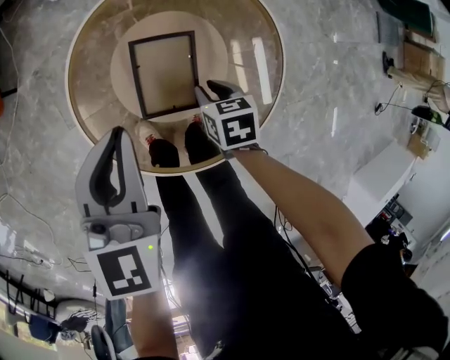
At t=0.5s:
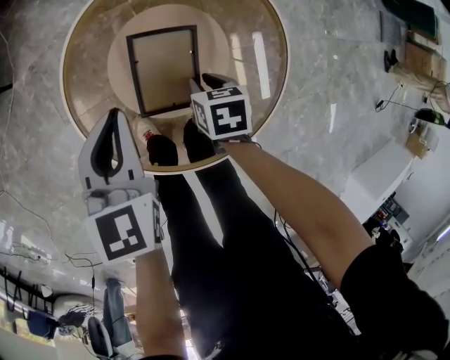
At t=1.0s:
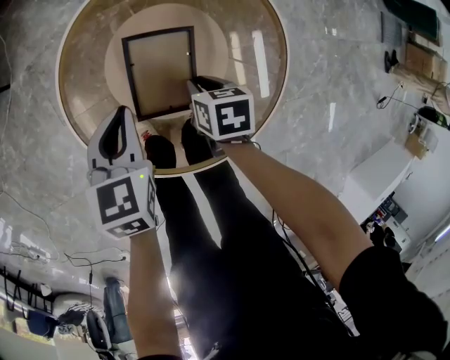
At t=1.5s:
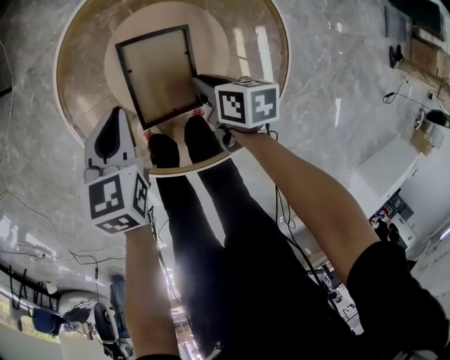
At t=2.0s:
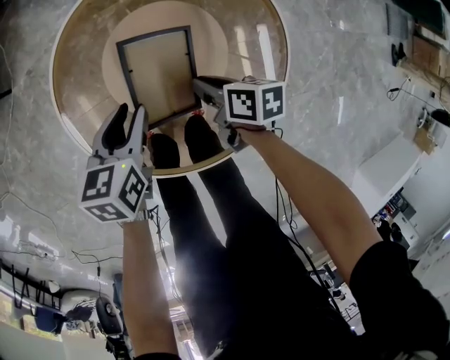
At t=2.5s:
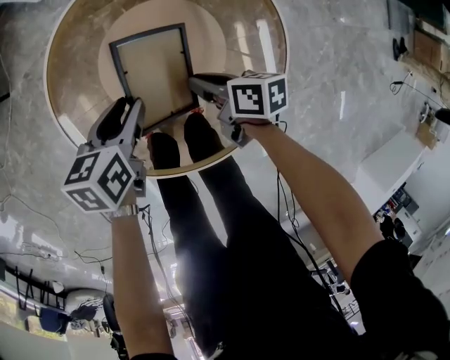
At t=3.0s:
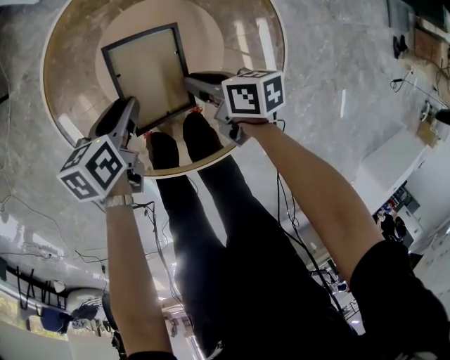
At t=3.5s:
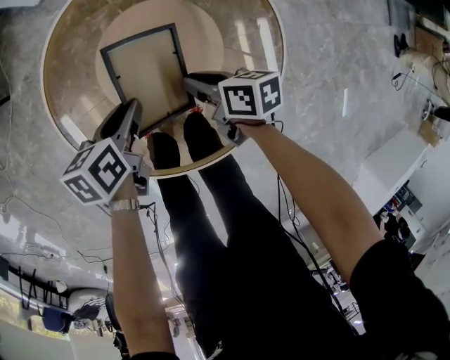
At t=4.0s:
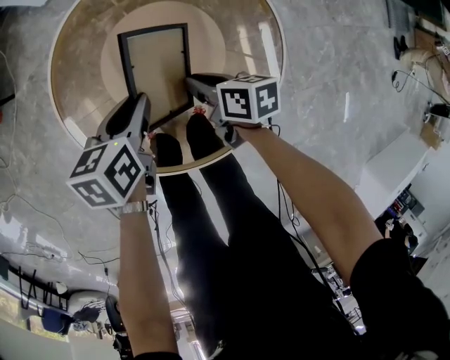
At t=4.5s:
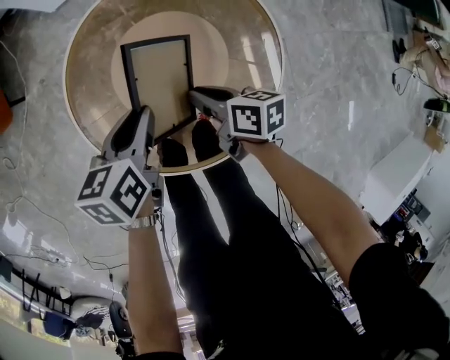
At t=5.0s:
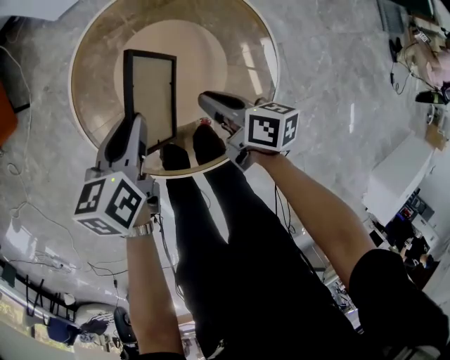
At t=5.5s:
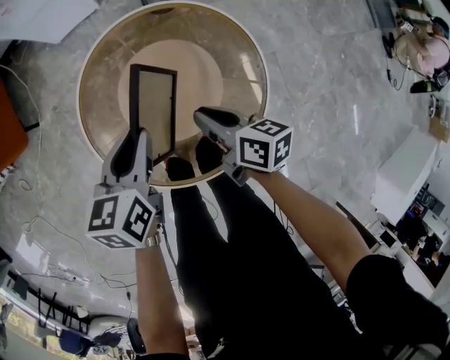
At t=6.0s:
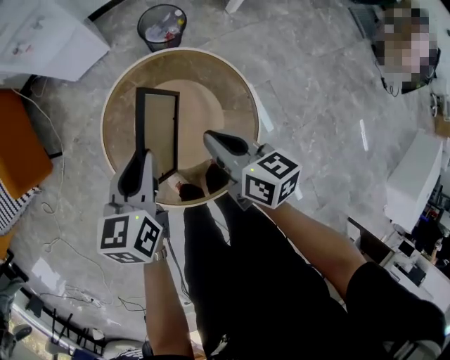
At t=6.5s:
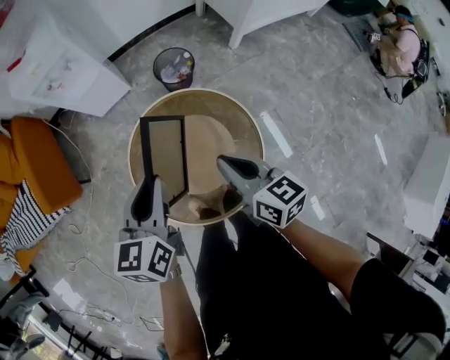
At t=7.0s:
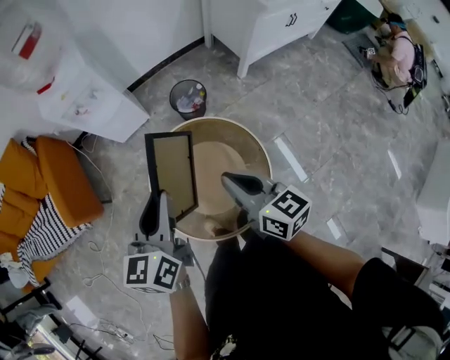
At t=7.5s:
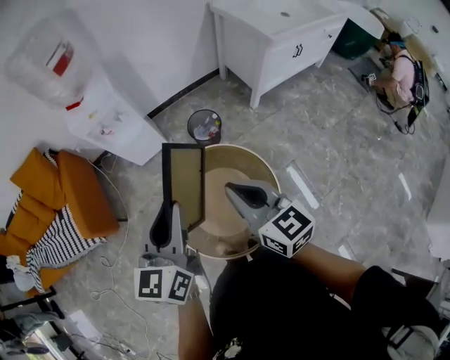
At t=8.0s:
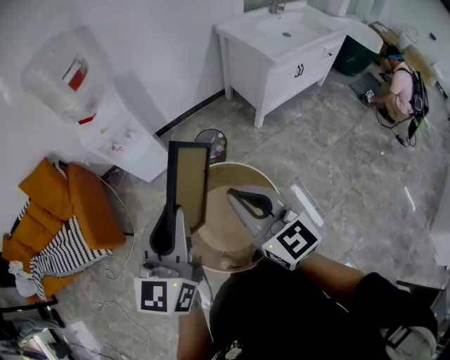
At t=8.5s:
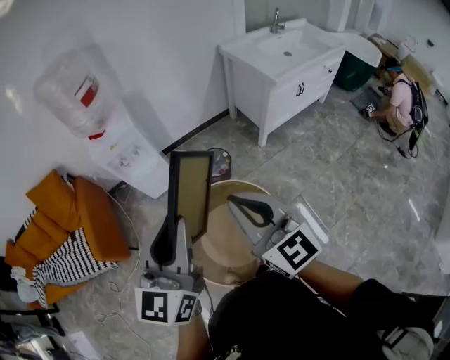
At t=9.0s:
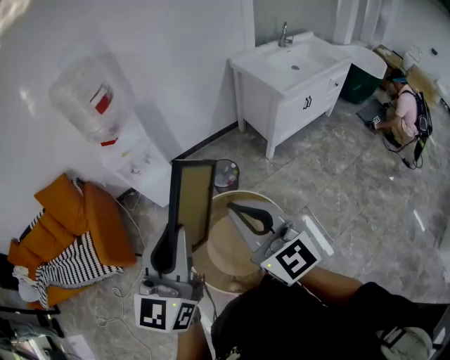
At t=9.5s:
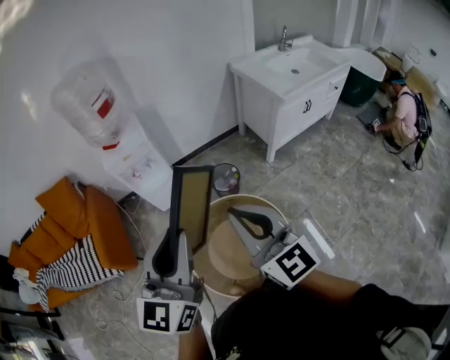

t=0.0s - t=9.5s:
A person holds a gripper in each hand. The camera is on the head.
t=0.0s - t=2.0s: The left gripper shifts roughly 20 cm downward, changes its angle by some 30 degrees, and opens up, while the right gripper swivels approximately 30 degrees.
t=2.0s - t=4.0s: The grippers move only a little.
t=4.0s - t=5.5s: The grippers both shift upward by approximately 15 cm.
t=5.5s - t=7.5s: The grippers both shift upward by some 50 cm. The right gripper changes its angle by roughly 40 degrees; the left gripper swivels approximately 40 degrees.
t=7.5s - t=9.5s: Both grippers move upward, some 15 cm. The right gripper changes its angle by approximately 20 degrees. Meanwhile the left gripper changes its angle by approximately 20 degrees.

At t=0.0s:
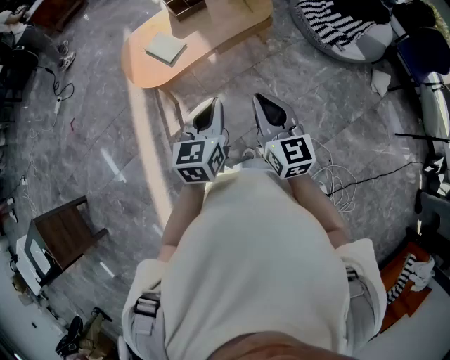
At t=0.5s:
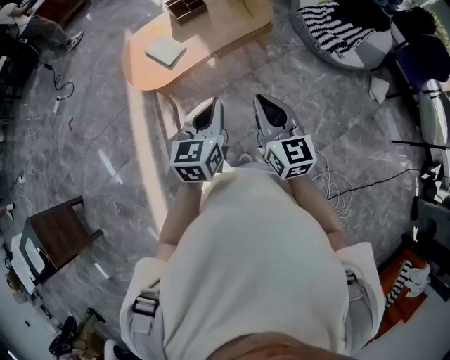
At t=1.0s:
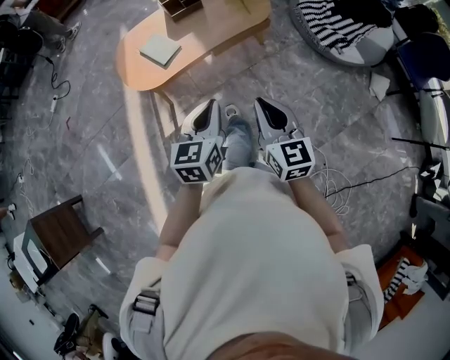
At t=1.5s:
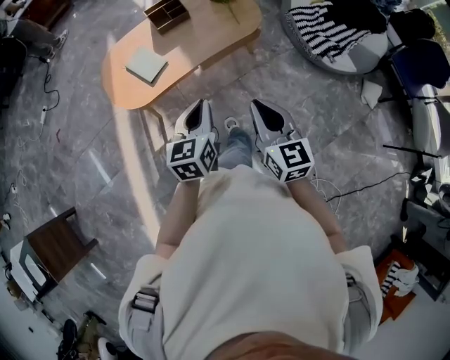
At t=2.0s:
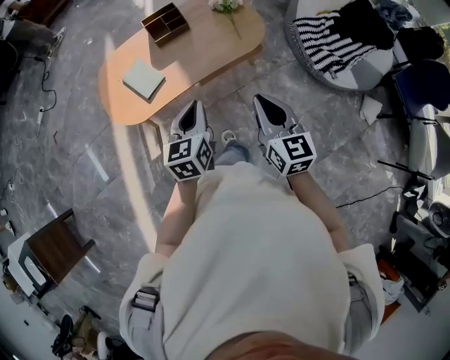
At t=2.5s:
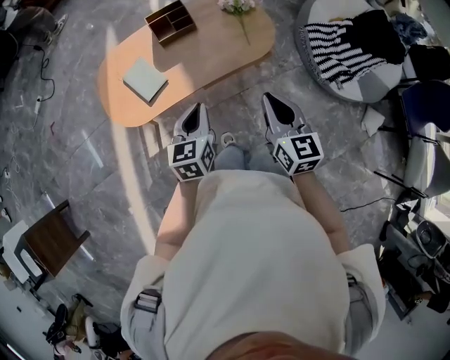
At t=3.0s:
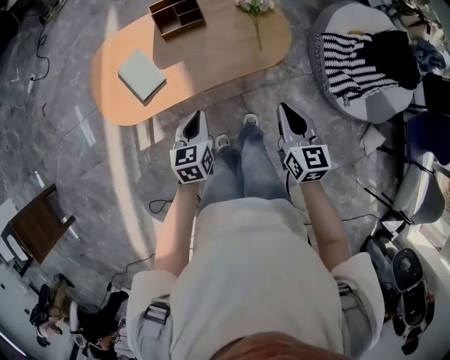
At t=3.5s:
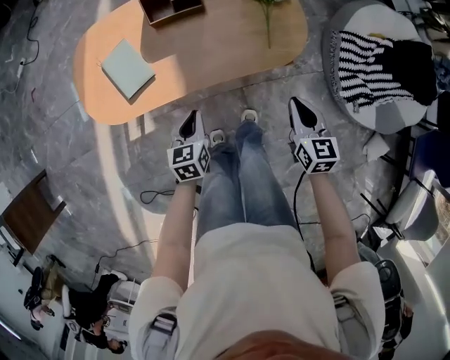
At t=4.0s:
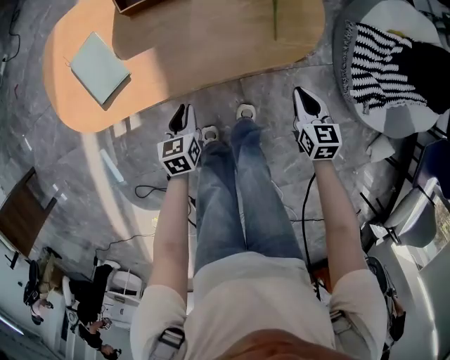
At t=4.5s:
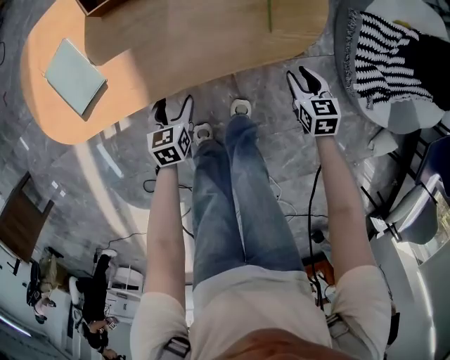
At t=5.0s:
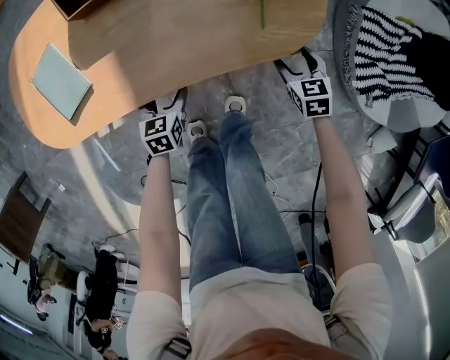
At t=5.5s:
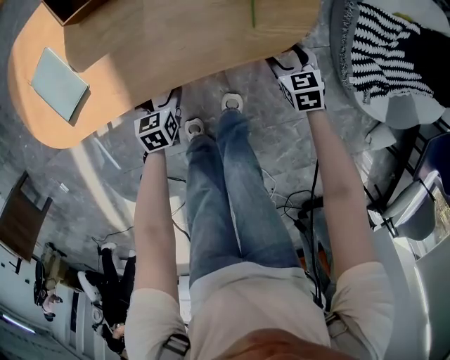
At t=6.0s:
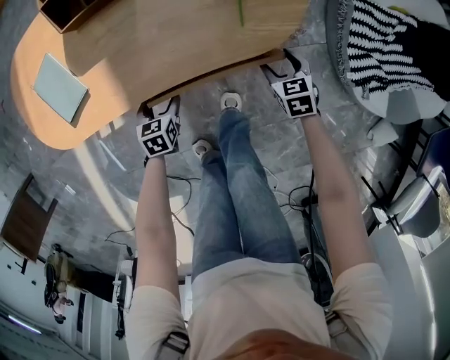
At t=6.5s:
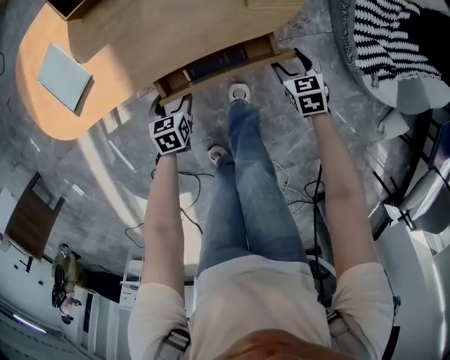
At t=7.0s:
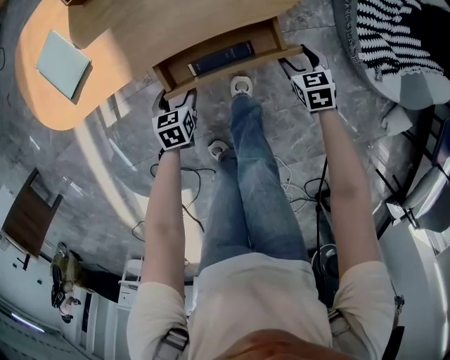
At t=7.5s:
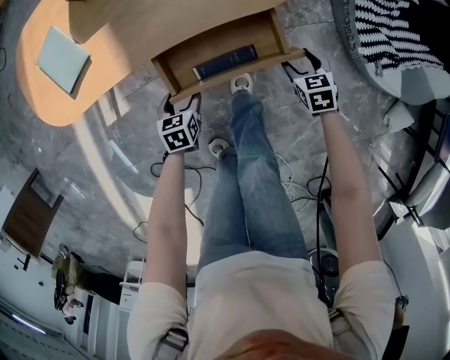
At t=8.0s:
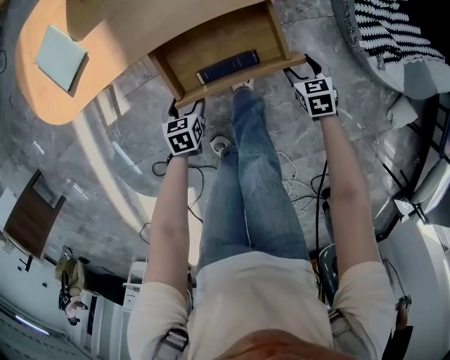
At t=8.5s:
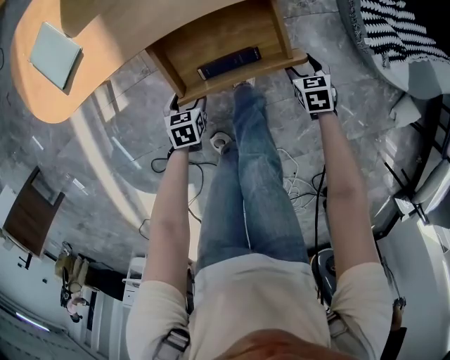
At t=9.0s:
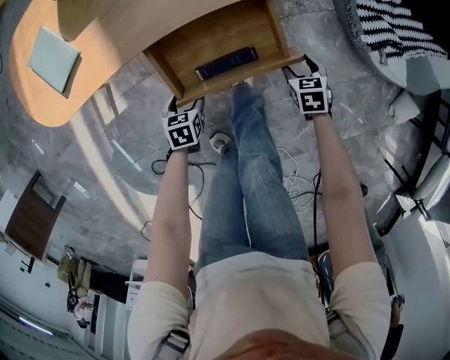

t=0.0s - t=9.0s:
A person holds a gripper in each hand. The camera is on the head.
t=0.0s - t=2.0s: The right gripper goes some 25 cm forward and to the right. The left gripper goes roughly 25 cm forward.
t=2.0s - t=4.5s: The left gripper goes some 50 cm downward, turns by roughly 30 degrees, and opens its fingers; the right gripper moves downward and forward, approximately 60 cm, angles its fingers downward, by about 40 degrees, and opens.
t=4.5s - t=7.0s: Both grippers move backward, about 5 cm. The right gripper opens.
t=7.0s - t=9.0s: The two grippers go some 10 cm backward.

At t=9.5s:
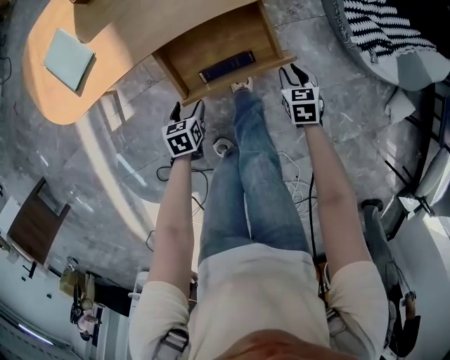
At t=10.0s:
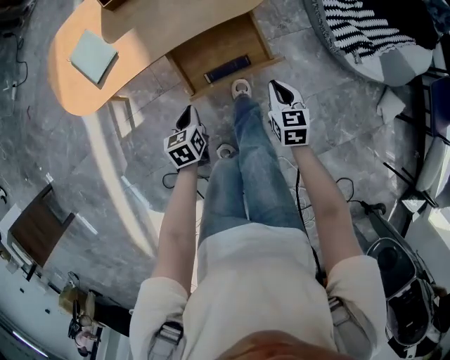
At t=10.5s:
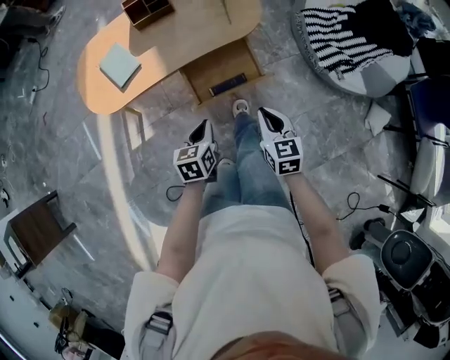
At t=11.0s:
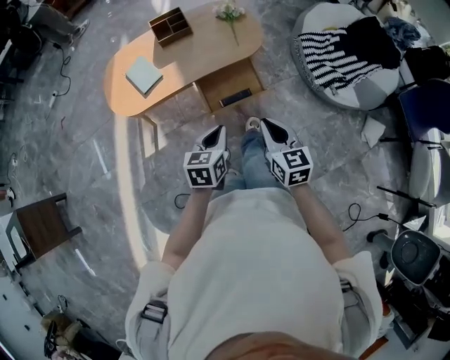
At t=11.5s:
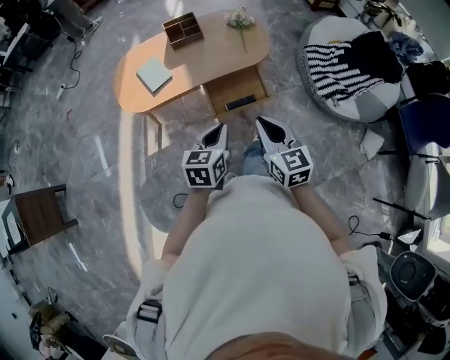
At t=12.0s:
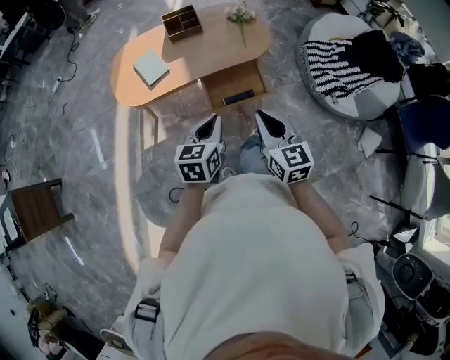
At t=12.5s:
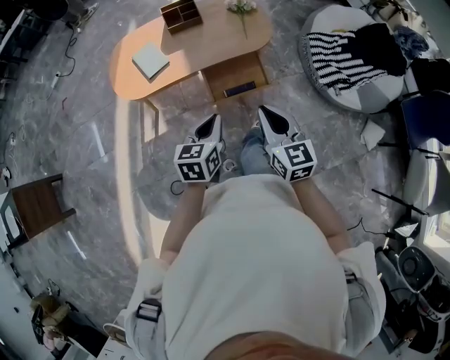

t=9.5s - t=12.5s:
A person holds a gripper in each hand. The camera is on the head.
t=9.5s - t=11.0s: The left gripper travels upward by about 40 cm, rotates roughly 30 degrees, and closes; the right gripper heads upward and backward, covering approximately 50 cm, tips its fingers upward by some 40 degrees, and closes its fingers.
t=11.0s - t=12.5s: The left gripper changes place by about 5 cm, while the right gripper travels upward by approximately 5 cm.

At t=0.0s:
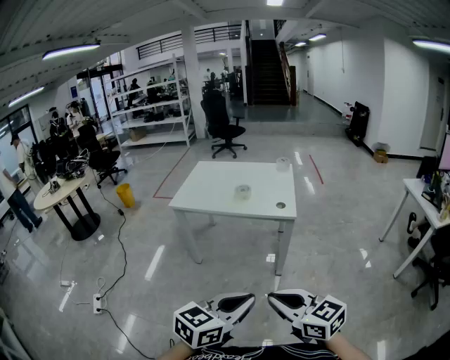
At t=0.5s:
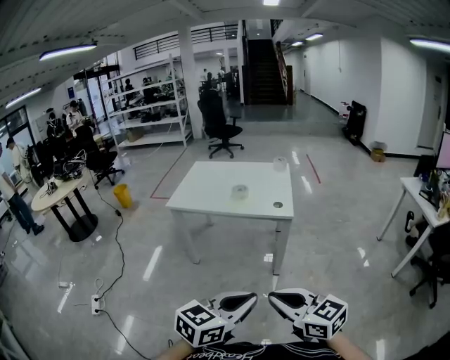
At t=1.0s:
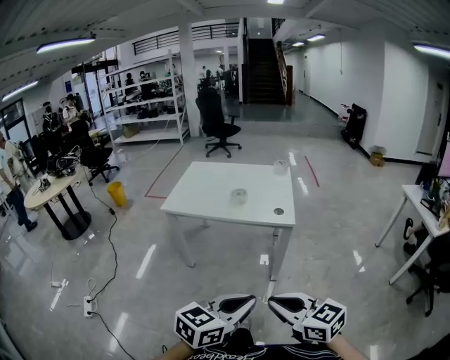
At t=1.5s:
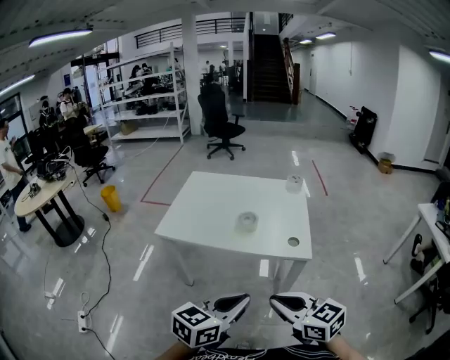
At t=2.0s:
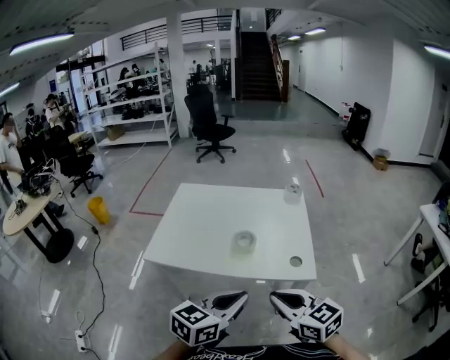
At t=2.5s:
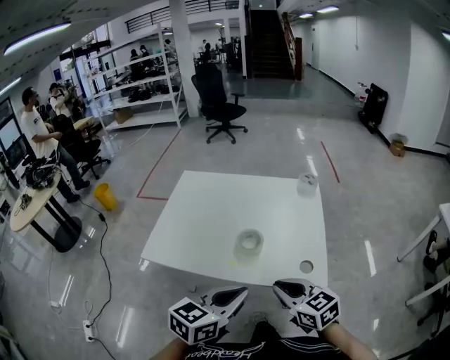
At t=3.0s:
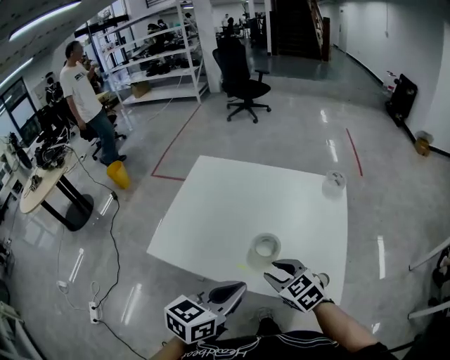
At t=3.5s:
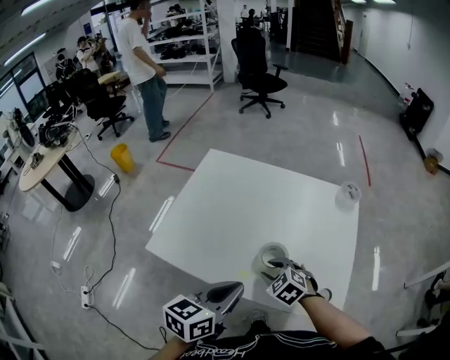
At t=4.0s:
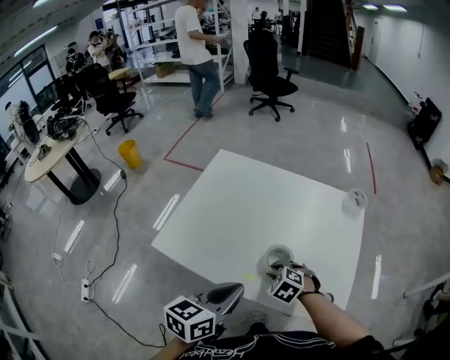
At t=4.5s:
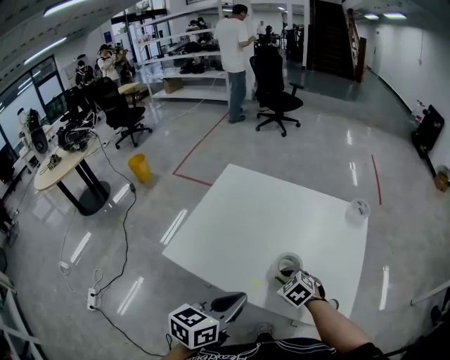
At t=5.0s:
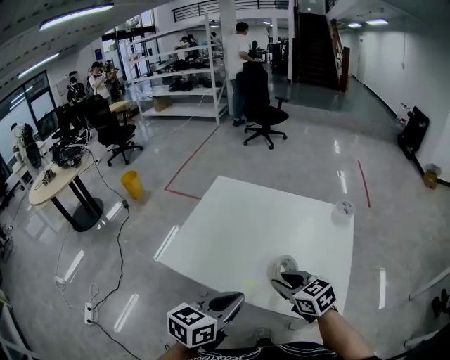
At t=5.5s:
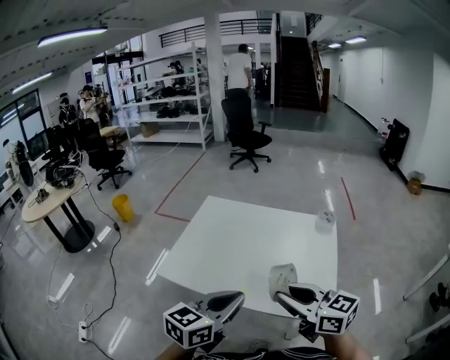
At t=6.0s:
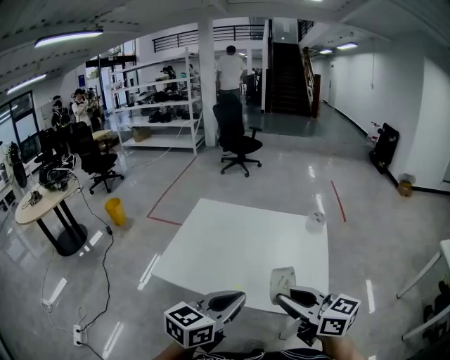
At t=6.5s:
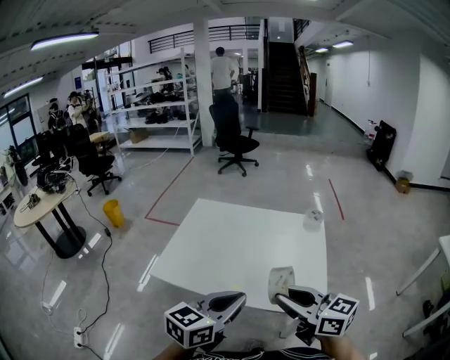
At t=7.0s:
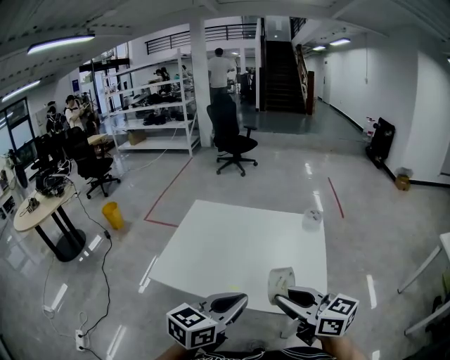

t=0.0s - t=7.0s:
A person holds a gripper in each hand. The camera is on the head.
t=0.0s - t=2.0s: The two grippers go some 35 cm forward.
t=2.0s - t=3.5s: The right gripper is displaced forward and downward by approximately 30 cm, tips its fingers downward by approximately 40 degrees, and opens up. Meanwhile the left gripper shifts roughly 15 cm forward, downward and to the left, and rotates roughly 20 degrees.
t=3.5s - t=5.0s: The right gripper heads upward, covering some 10 cm, and swivels approximately 30 degrees.
t=5.0s - t=7.0s: The right gripper goes some 20 cm upward and backward, and swivels approximately 30 degrees; the left gripper heads upward and to the right, covering approximately 10 cm.
